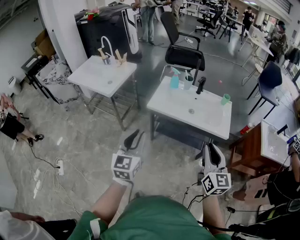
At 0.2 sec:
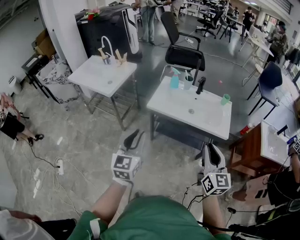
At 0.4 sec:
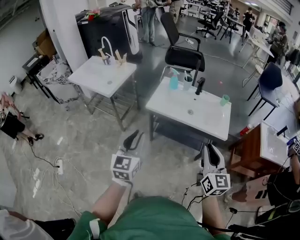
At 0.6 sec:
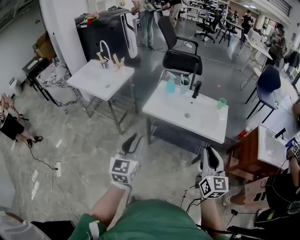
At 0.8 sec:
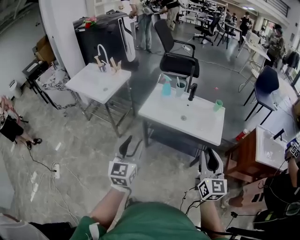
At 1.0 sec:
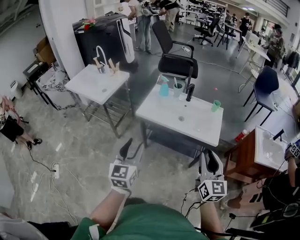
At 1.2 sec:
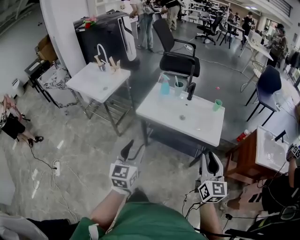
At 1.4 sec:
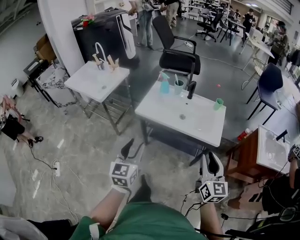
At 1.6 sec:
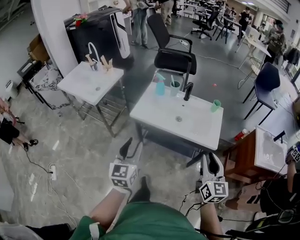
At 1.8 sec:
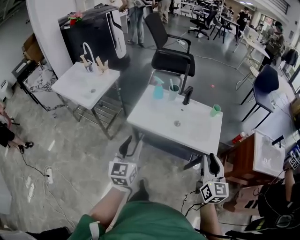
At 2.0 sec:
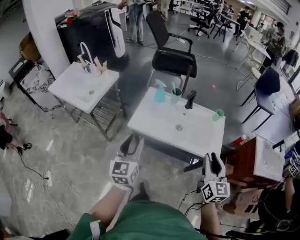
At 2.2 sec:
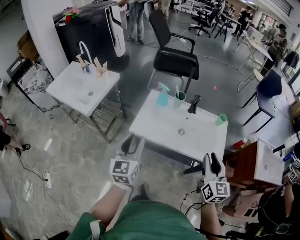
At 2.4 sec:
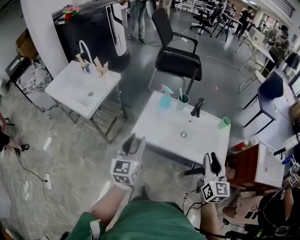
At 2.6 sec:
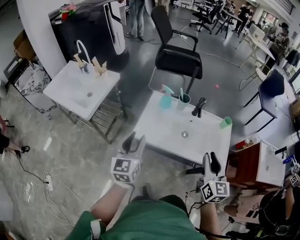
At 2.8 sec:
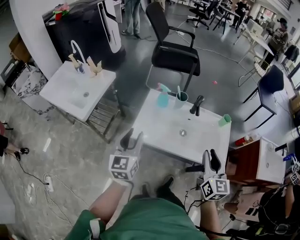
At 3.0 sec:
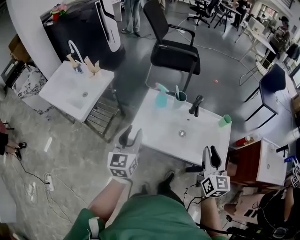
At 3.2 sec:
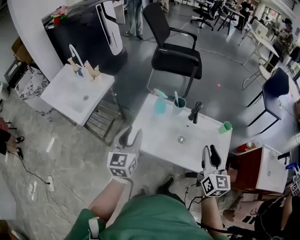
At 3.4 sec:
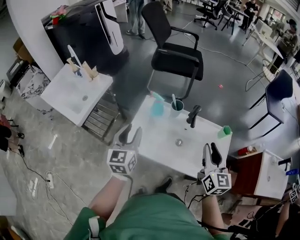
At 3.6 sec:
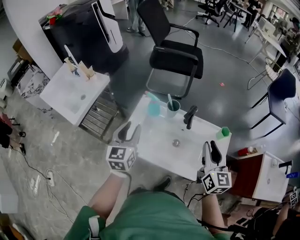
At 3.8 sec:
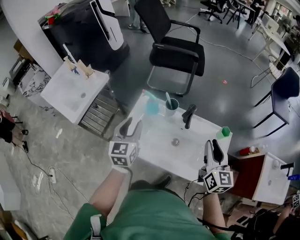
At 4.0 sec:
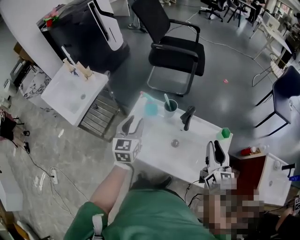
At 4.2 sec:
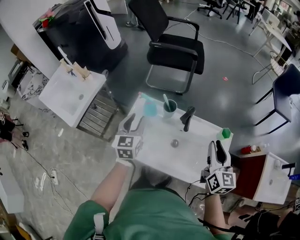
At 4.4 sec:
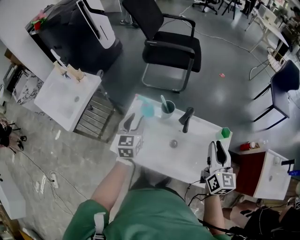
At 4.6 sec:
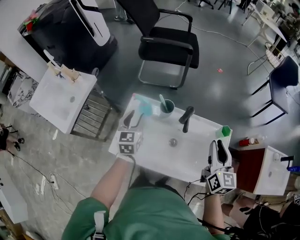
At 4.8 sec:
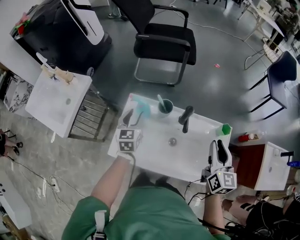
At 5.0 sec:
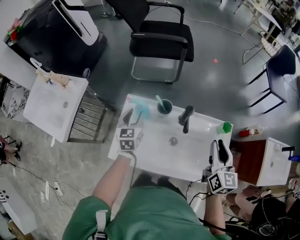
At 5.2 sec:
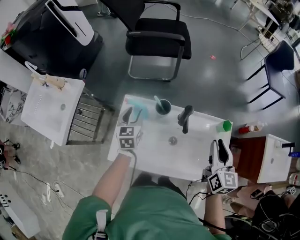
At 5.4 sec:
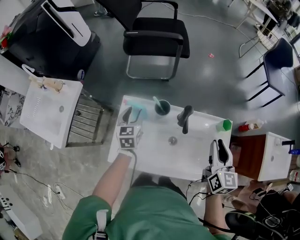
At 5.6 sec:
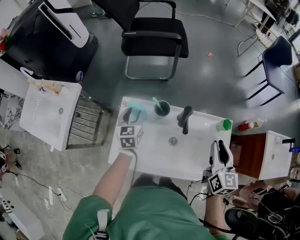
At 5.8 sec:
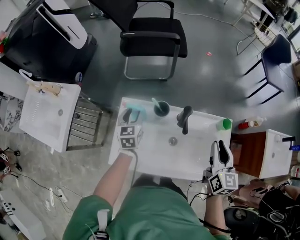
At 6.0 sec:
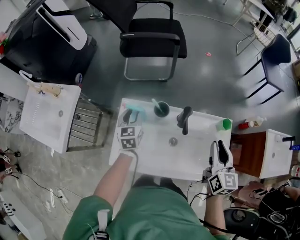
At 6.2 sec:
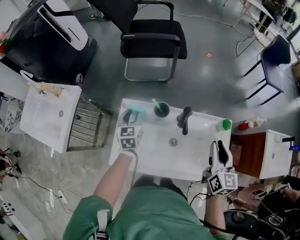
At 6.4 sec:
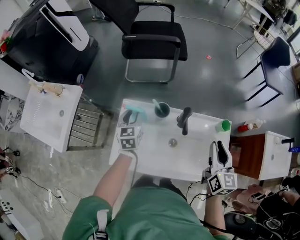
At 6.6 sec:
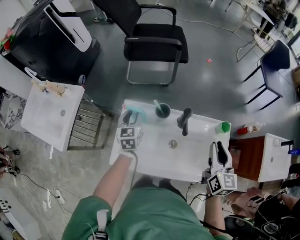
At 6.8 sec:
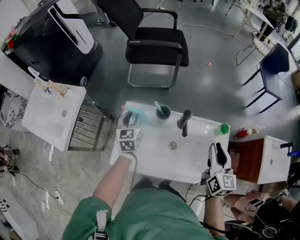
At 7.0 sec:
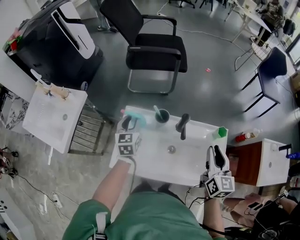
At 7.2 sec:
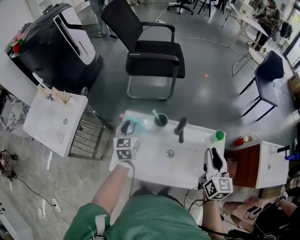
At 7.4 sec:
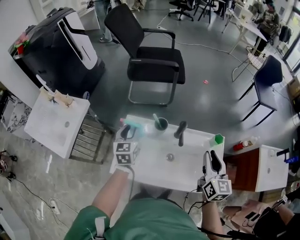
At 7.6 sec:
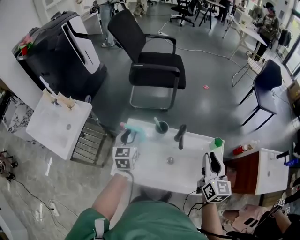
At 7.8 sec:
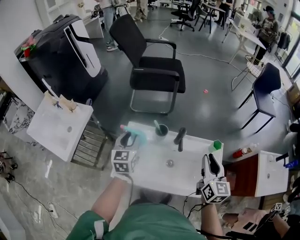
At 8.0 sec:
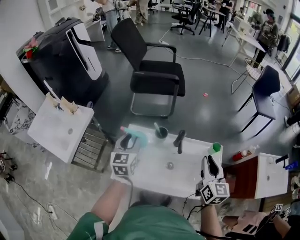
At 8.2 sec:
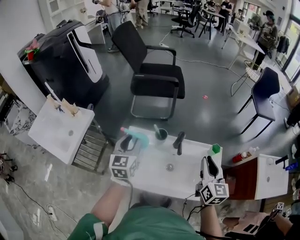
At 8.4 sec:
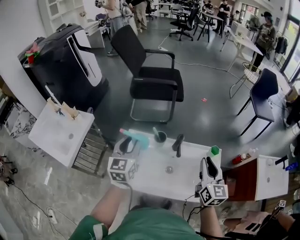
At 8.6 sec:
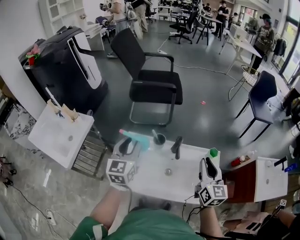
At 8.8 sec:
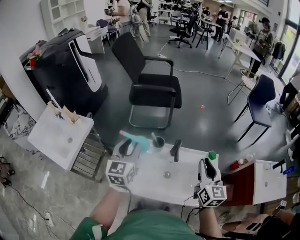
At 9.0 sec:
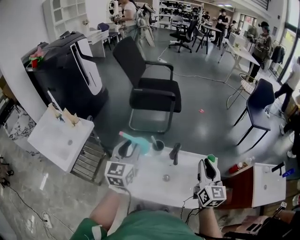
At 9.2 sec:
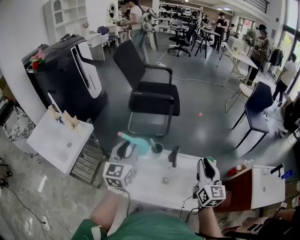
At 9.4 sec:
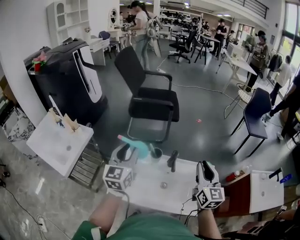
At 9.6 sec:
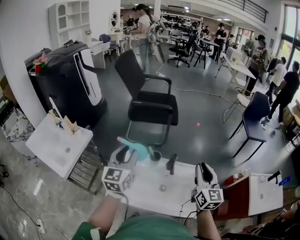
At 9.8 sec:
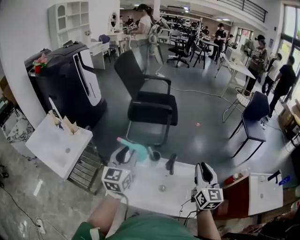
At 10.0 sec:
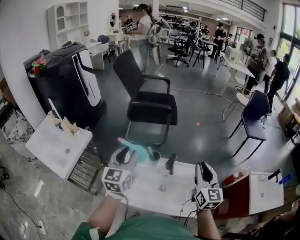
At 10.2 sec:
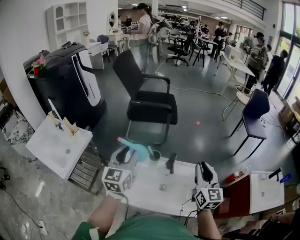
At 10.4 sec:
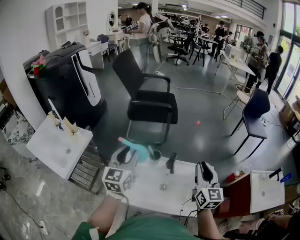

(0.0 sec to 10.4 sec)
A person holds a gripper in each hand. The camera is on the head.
0.0 sec - 1.4 sec: The two grippers go about 10 cm to the right. The left gripper opens up.
1.4 sec - 3.0 sec: Both grippers move forward, about 35 cm.
3.0 sec - 4.4 sec: The grippers both shift forward and to the right by about 25 cm.
4.4 sec - 6.0 sec: The left gripper heads forward and downward, covering roughly 15 cm.
6.0 sec - 7.4 sec: The left gripper shifts some 10 cm upward and backward, while the right gripper ends up about 5 cm from where it was.
7.4 sec - 9.0 sec: The left gripper heads upward and backward, covering roughly 20 cm. The right gripper heads upward, covering approximately 5 cm.
9.0 sec - 10.4 sec: The grippers stay close to where they were, moving slightly.

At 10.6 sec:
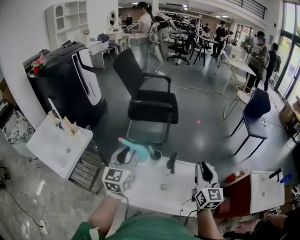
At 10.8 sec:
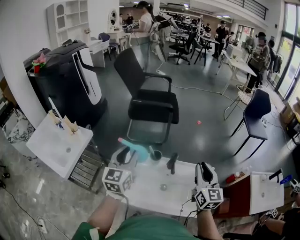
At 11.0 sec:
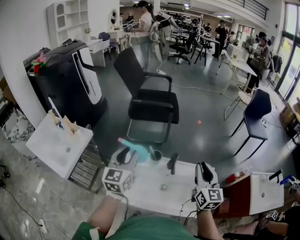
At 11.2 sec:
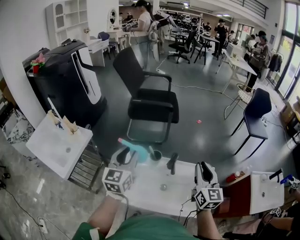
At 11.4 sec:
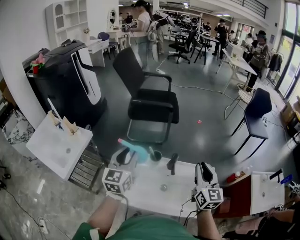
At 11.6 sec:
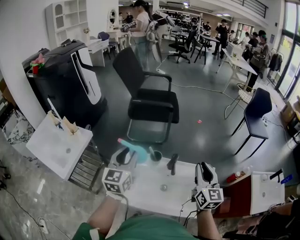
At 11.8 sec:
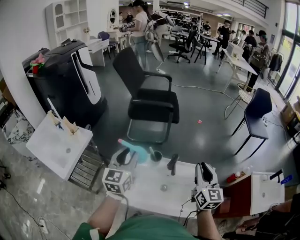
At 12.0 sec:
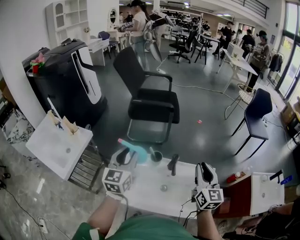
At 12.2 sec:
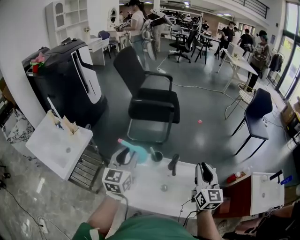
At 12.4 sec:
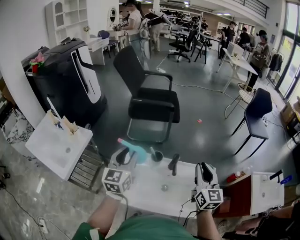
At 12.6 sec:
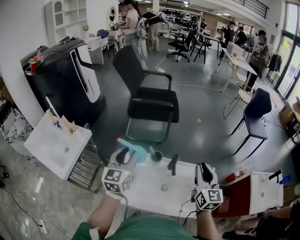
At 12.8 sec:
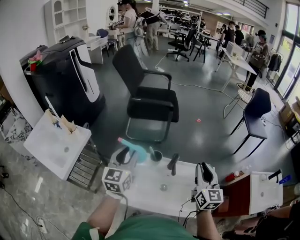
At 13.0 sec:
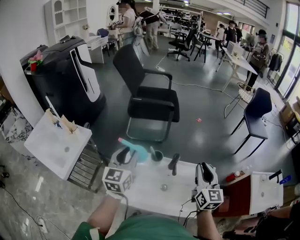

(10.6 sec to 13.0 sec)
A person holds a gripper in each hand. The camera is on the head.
10.6 sec - 13.0 sec: The grippers make only small movements.

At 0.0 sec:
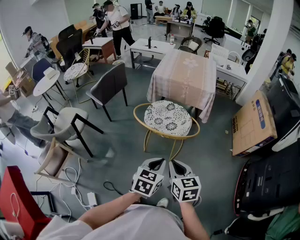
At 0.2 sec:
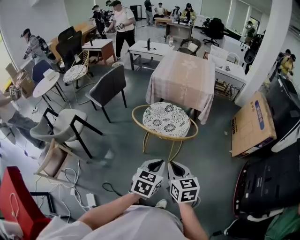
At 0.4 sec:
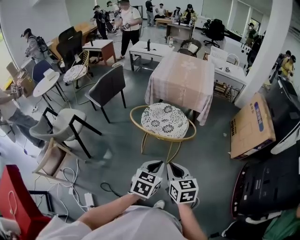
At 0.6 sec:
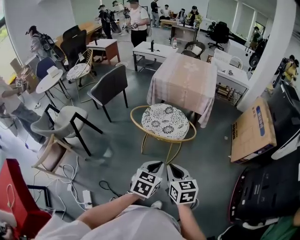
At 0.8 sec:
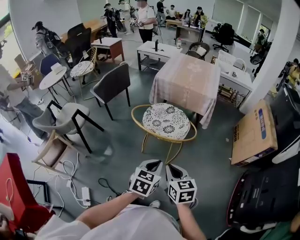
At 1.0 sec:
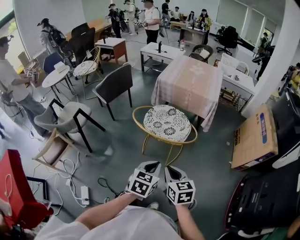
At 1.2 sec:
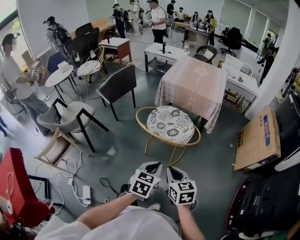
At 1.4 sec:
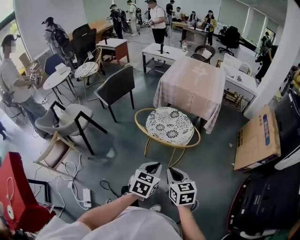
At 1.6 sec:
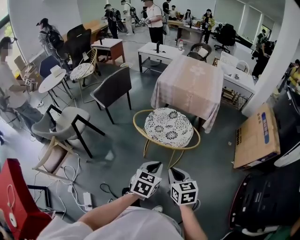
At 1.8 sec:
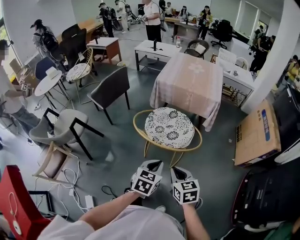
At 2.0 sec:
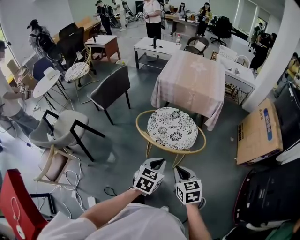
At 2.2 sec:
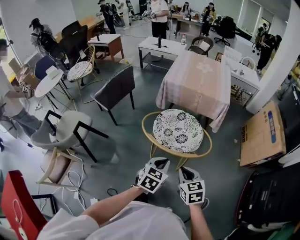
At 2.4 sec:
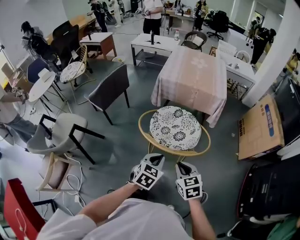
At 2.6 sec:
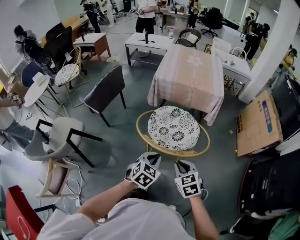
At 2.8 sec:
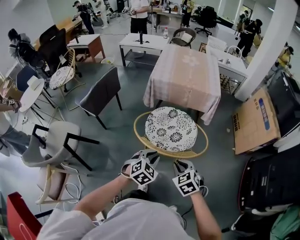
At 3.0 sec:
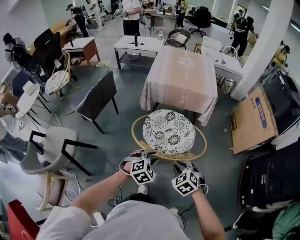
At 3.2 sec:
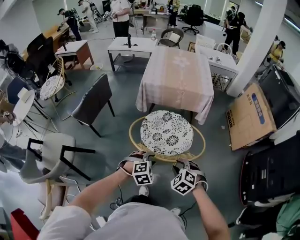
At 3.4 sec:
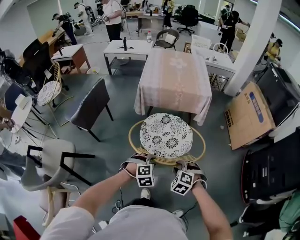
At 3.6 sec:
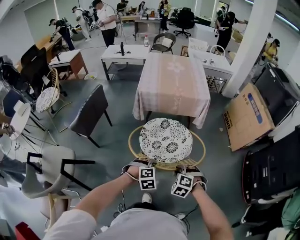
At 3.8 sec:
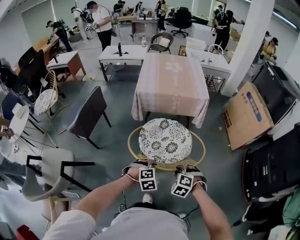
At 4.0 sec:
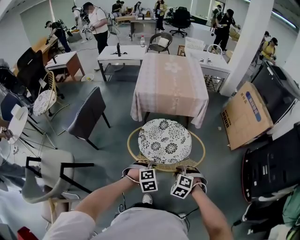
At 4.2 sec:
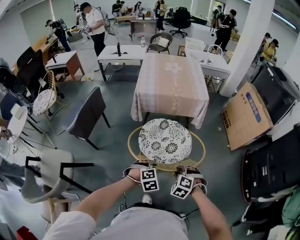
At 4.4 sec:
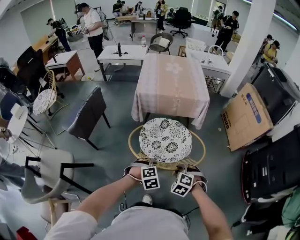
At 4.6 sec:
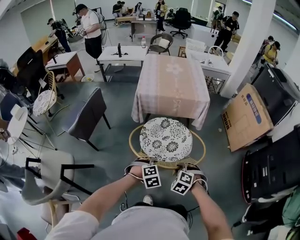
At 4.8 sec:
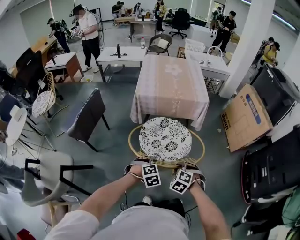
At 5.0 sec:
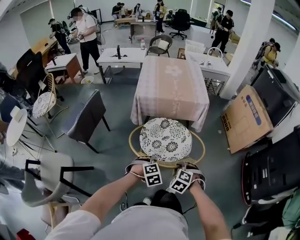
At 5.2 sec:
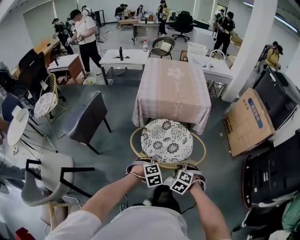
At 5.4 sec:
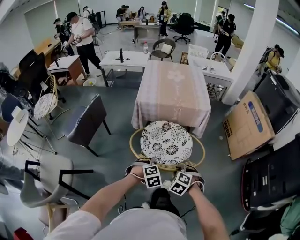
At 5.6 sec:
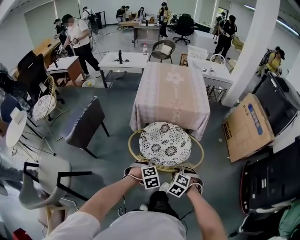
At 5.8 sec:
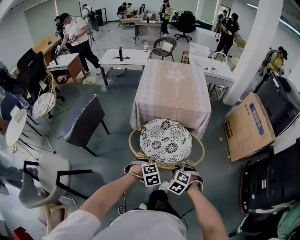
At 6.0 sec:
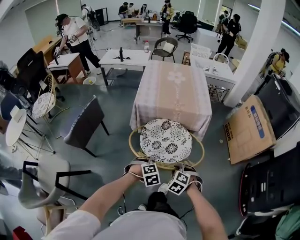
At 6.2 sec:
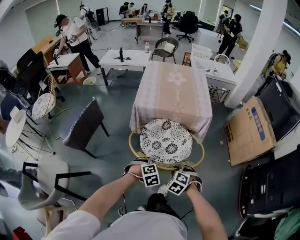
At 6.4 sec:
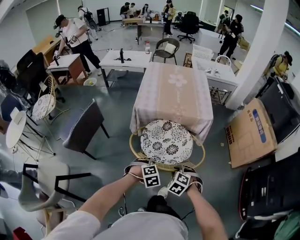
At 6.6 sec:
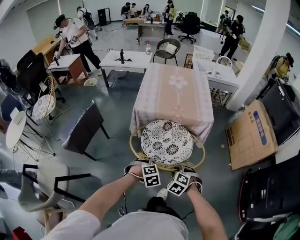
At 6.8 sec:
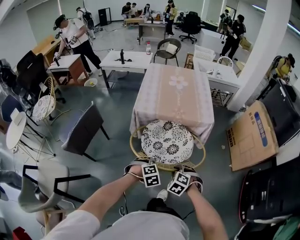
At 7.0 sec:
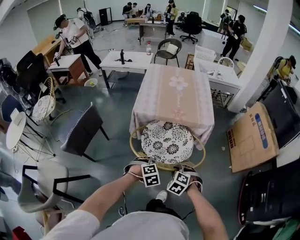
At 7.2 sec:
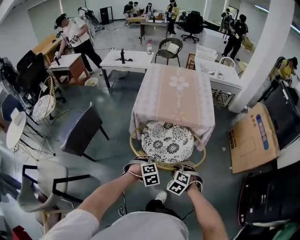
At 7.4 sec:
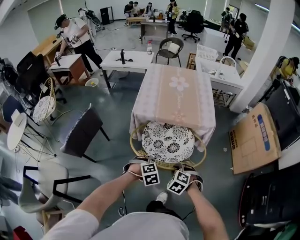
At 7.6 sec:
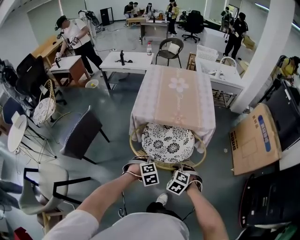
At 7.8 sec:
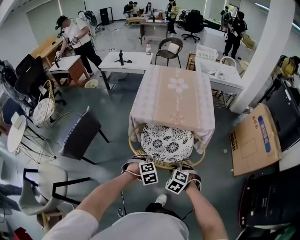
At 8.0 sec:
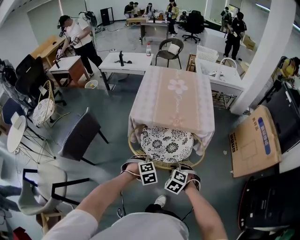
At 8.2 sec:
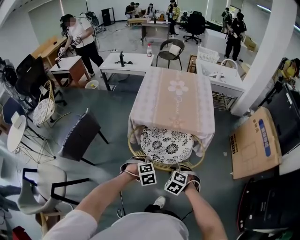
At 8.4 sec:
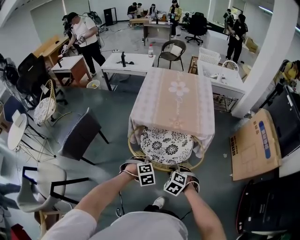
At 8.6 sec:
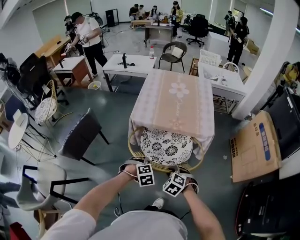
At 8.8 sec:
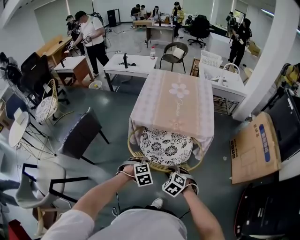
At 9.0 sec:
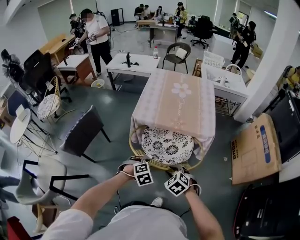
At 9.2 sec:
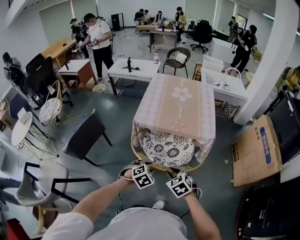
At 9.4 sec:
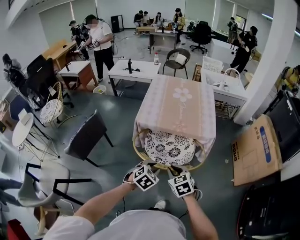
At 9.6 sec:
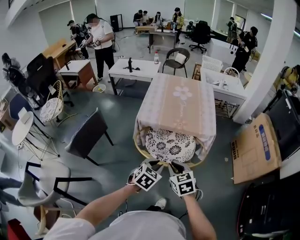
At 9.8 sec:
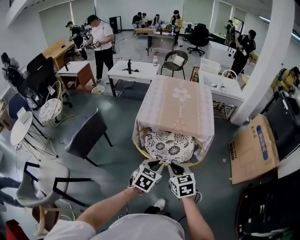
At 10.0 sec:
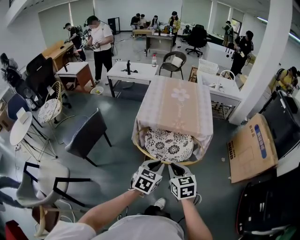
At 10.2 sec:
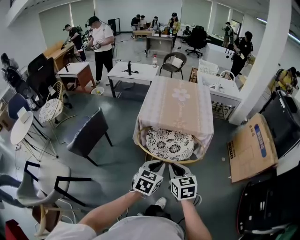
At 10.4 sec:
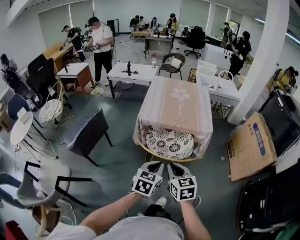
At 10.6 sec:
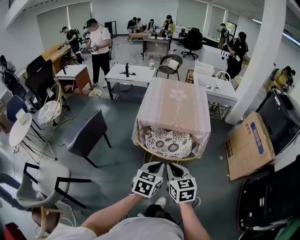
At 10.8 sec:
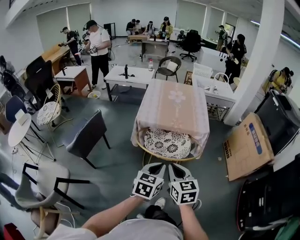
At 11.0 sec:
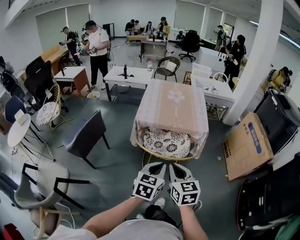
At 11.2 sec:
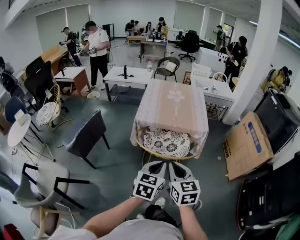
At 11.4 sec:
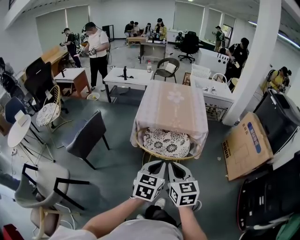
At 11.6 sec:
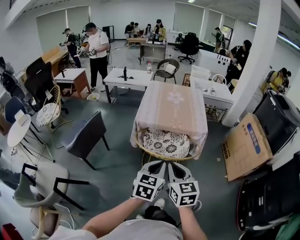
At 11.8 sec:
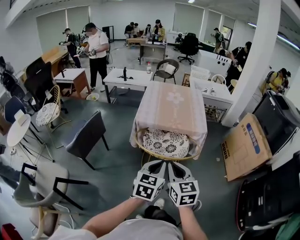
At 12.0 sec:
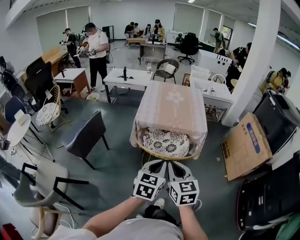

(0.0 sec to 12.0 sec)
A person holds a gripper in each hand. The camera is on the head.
0.0 sec - 1.6 sec: The right gripper moves some 5 cm. The left gripper changes place by about 5 cm.
1.6 sec - 3.0 sec: The grippers both shift forward, to the left and downward by roughly 20 cm. The right gripper turns by some 40 degrees. The left gripper rolls clockwise, seen from behind, by some 50 degrees, and opens up.
3.0 sec - 4.4 sec: The left gripper heads downward, covering roughly 5 cm, and swivels about 20 degrees. Meanwhile the right gripper moves approximately 5 cm, and turns by some 20 degrees.
4.4 sec - 6.0 sec: Both grippers move forward, roughly 10 cm.
6.0 sec - 7.6 sec: The two grippers go some 15 cm forward.
7.6 sec - 9.0 sec: The grippers move only a little.
9.0 sec - 10.4 sec: The two grippers go approximately 20 cm upward and backward. The right gripper swivels roughly 50 degrees. The left gripper tilts its fingers some 40 degrees upward, and closes its fingers.
10.4 sec - 12.0 sec: Both grippers travel together upward, roughly 5 cm.
